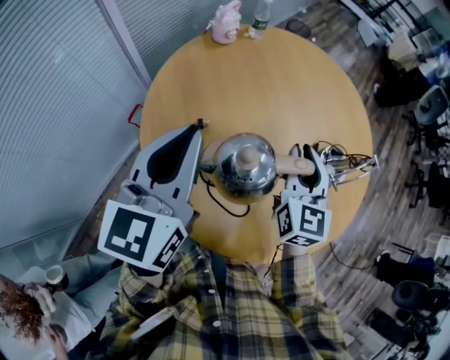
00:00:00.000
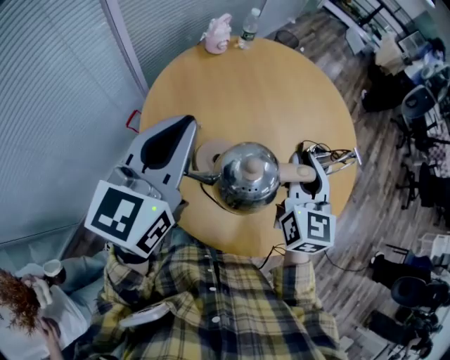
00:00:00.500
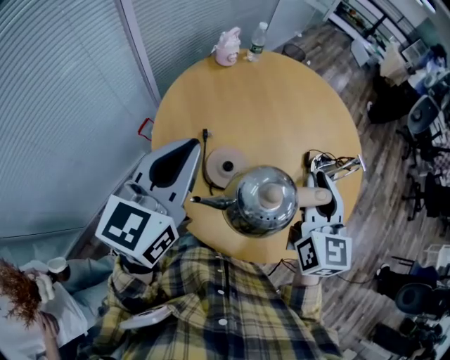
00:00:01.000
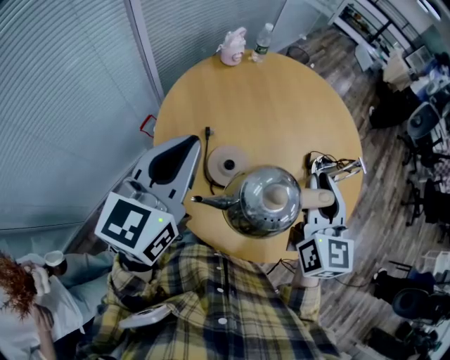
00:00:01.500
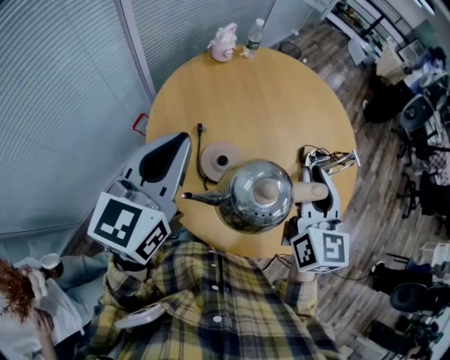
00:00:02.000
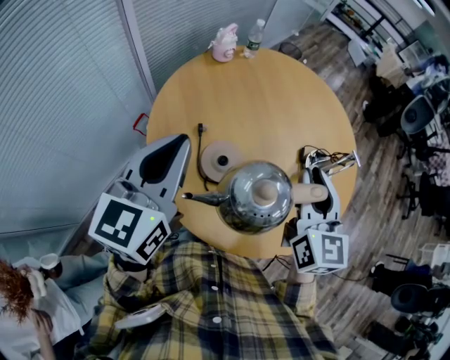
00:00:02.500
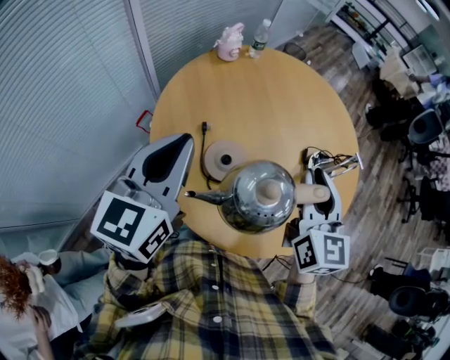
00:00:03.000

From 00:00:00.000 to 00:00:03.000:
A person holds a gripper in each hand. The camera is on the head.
From 00:00:00.000 to 00:00:01.500: The left gripper shifts roughly 5 cm backward, while the right gripper heads upward and backward, covering some 15 cm.
From 00:00:01.500 to 00:00:03.000: Neither gripper changes place.

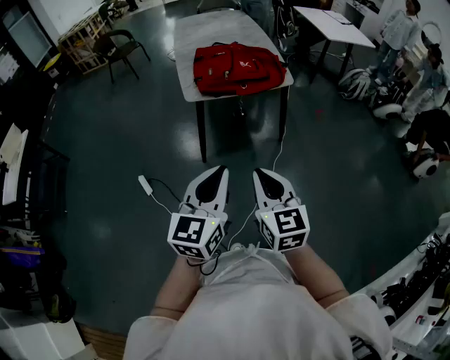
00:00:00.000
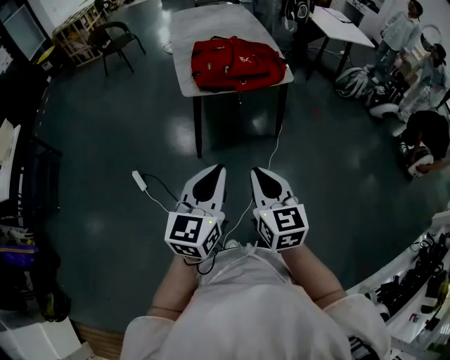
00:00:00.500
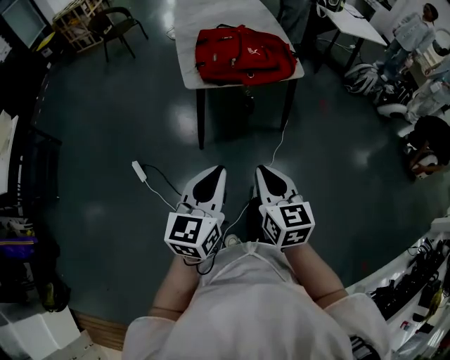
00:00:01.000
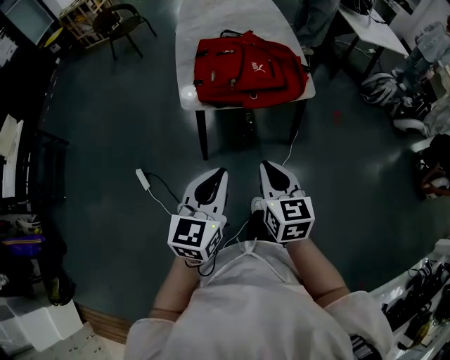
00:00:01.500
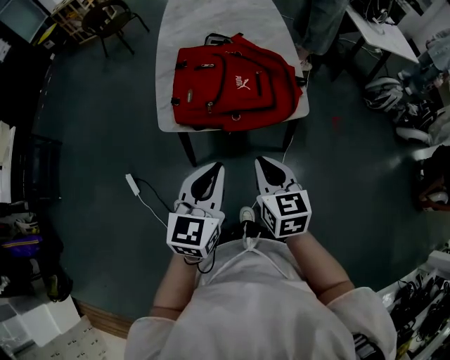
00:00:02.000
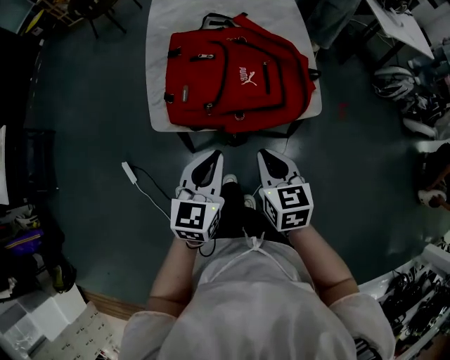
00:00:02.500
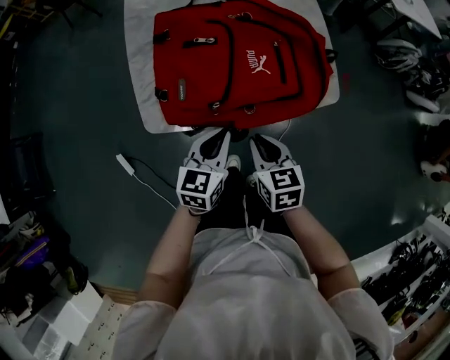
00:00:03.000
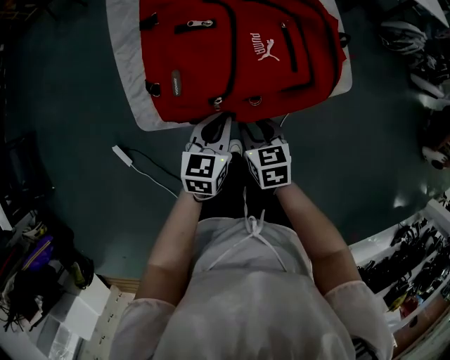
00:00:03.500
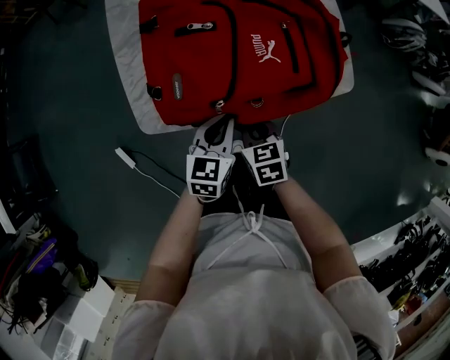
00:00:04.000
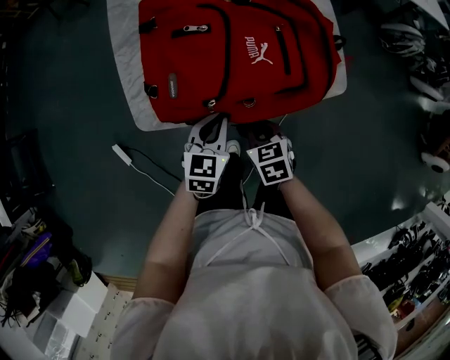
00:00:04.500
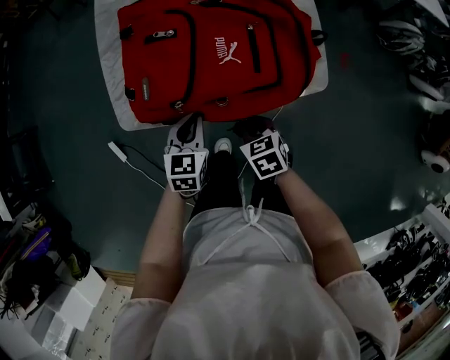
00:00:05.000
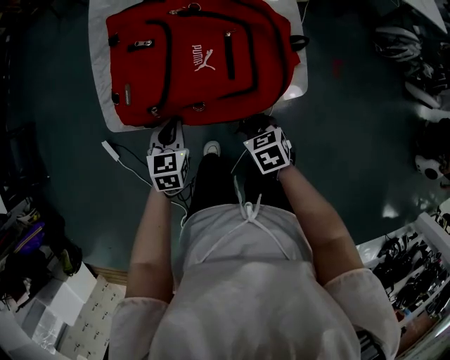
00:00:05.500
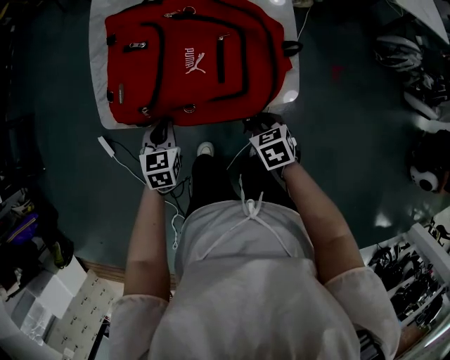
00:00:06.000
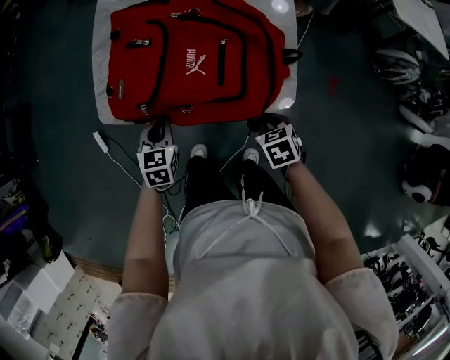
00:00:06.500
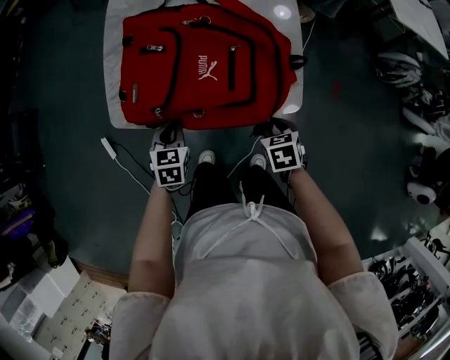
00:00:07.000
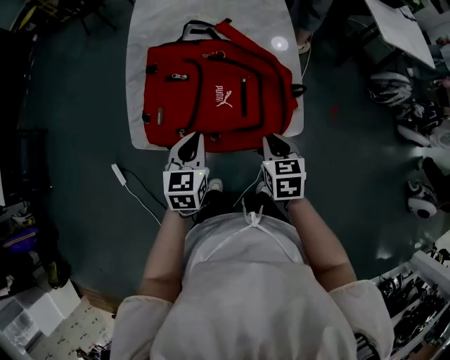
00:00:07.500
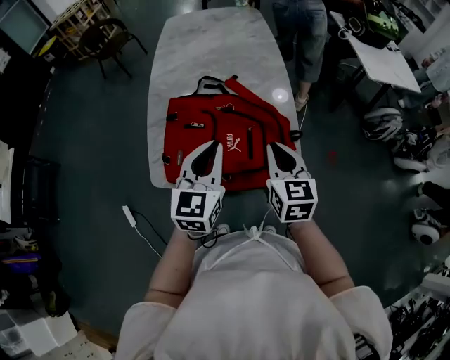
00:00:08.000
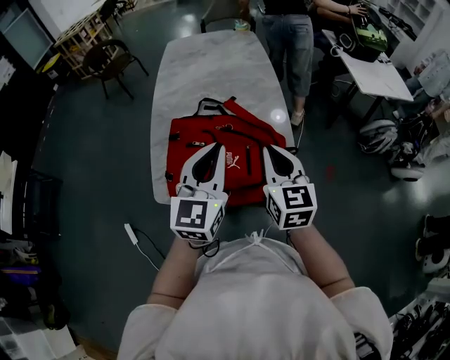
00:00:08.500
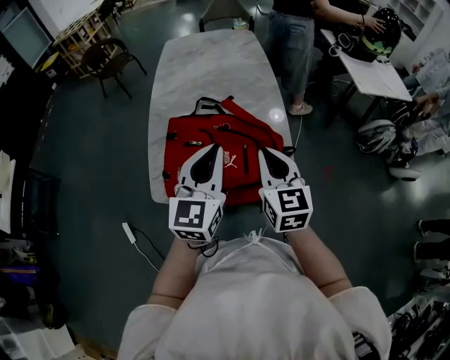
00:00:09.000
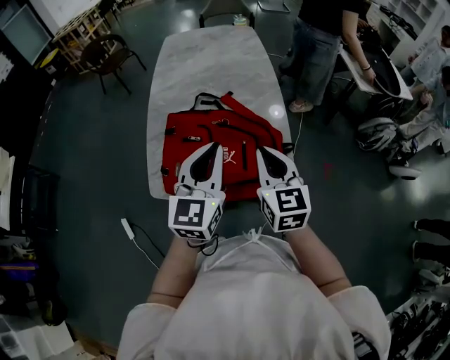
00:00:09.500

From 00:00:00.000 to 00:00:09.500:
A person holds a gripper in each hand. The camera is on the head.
From 00:00:00.000 to 00:00:02.000: Both grippers move forward, roughly 35 cm.
From 00:00:02.000 to 00:00:04.000: Both grippers travel together downward and forward, approximately 30 cm. The right gripper changes its angle by some 20 degrees, and opens, then closes once more.
From 00:00:04.000 to 00:00:05.500: The right gripper goes about 15 cm to the right, while the left gripper turns by approximately 20 degrees.
From 00:00:05.500 to 00:00:07.500: Both grippers travel together upward, roughly 15 cm. The right gripper rotates about 20 degrees.
From 00:00:07.500 to 00:00:09.500: Both grippers move upward, some 25 cm. The left gripper swivels approximately 30 degrees. The right gripper tips its fingers upward by some 30 degrees.

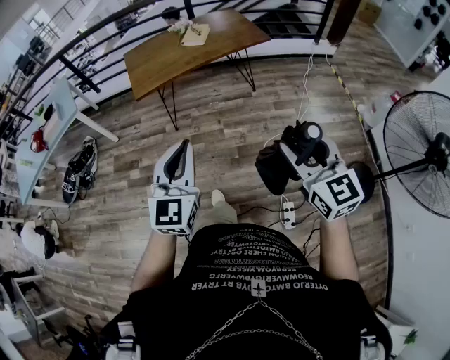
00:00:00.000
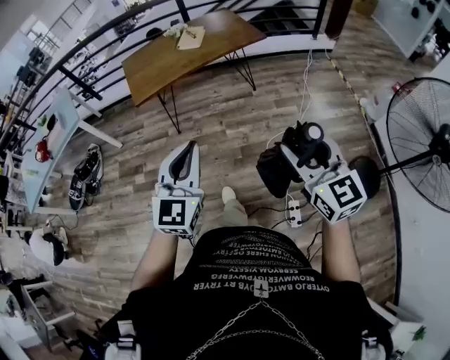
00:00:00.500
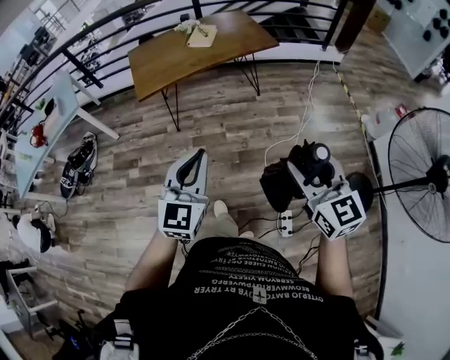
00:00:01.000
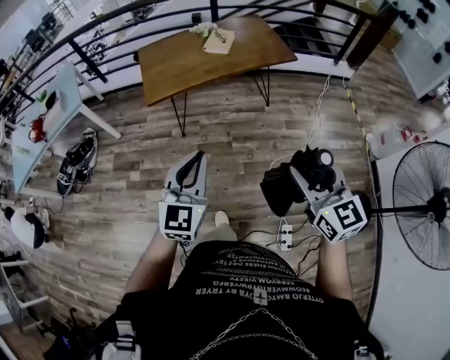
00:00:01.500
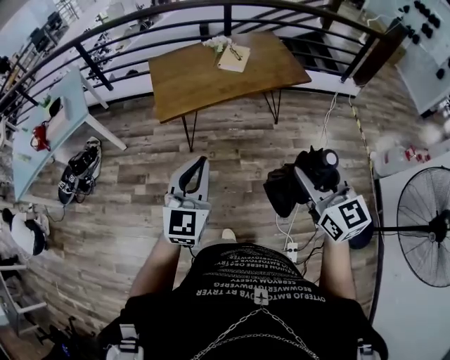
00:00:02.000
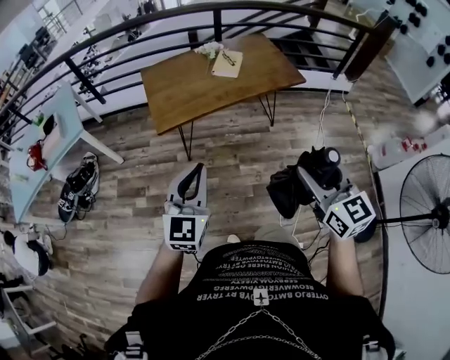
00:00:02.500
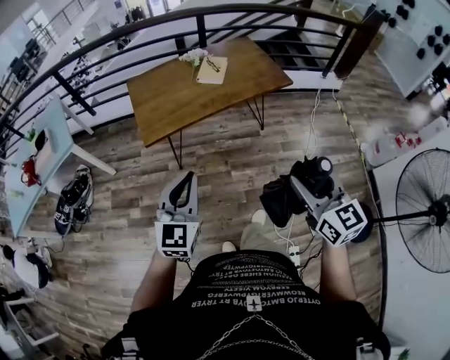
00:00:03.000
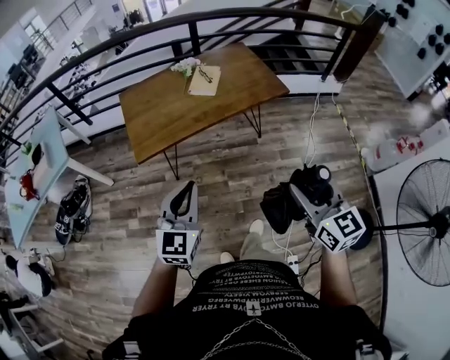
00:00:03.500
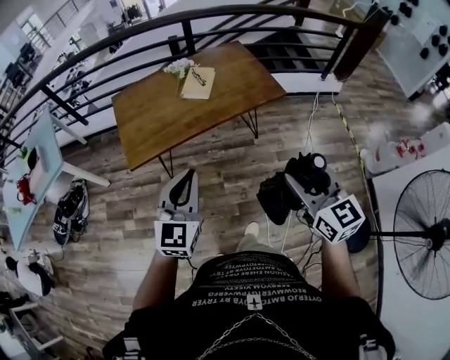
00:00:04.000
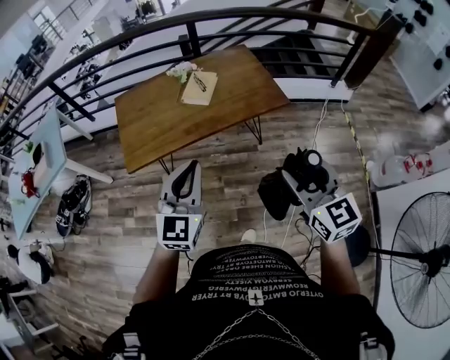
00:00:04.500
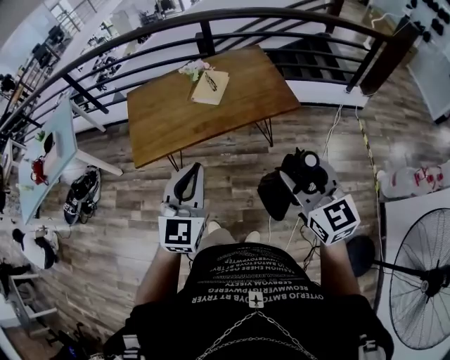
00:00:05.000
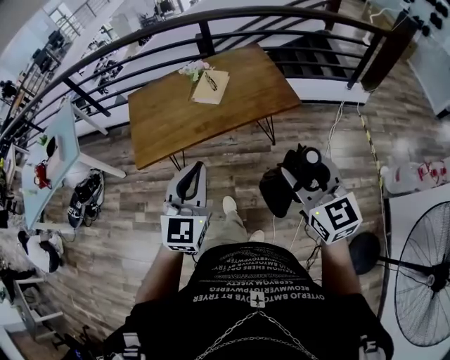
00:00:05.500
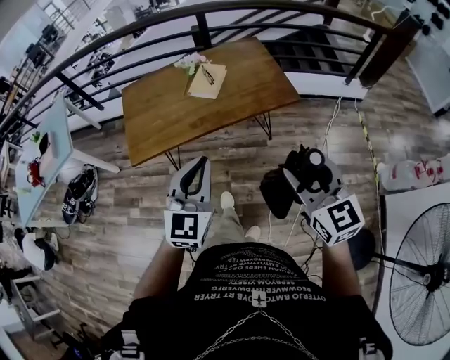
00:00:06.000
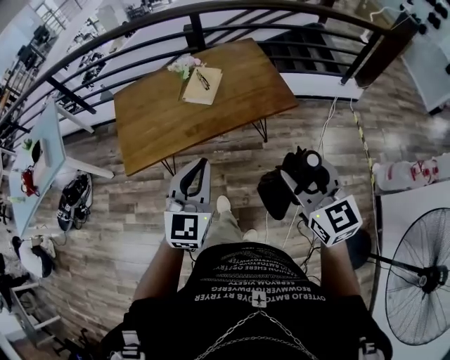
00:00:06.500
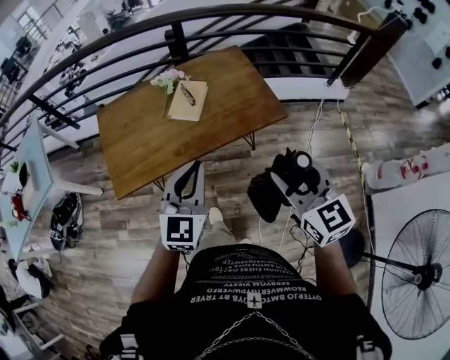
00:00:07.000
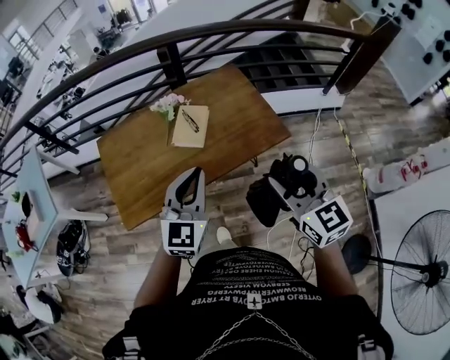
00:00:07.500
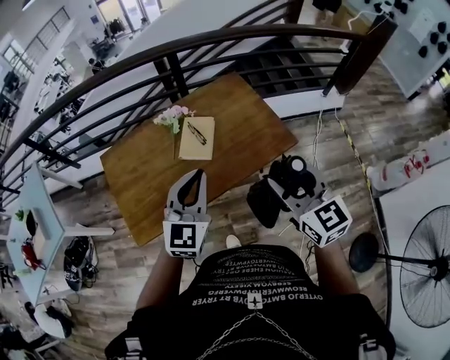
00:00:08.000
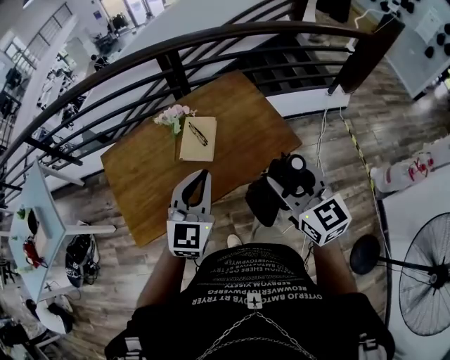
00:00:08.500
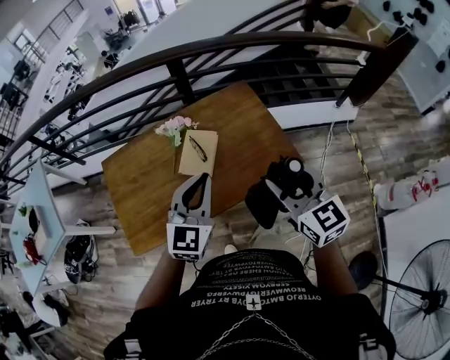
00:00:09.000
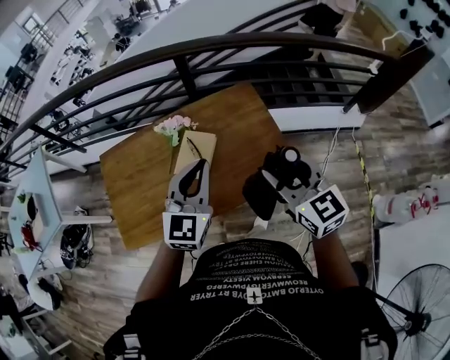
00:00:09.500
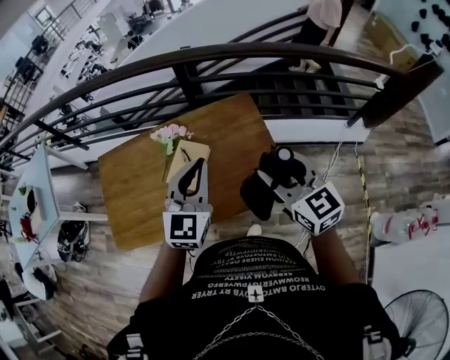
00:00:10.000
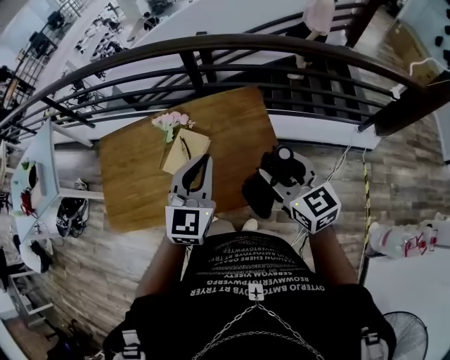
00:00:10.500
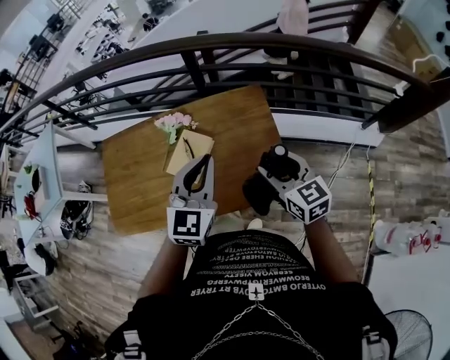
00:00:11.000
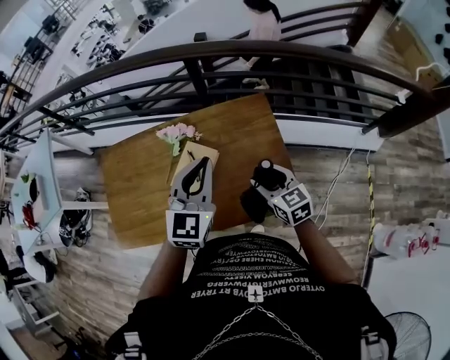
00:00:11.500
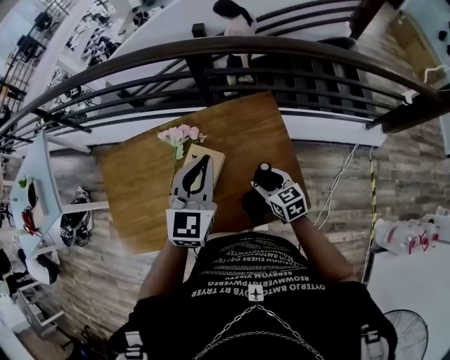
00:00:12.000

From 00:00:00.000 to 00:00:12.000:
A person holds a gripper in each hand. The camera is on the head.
From 00:00:00.000 to 00:00:02.000: The grippers both shift forward and to the left by roughly 25 cm.
From 00:00:02.000 to 00:00:04.000: Both grippers travel together forward and to the right, about 20 cm.
From 00:00:04.000 to 00:00:06.000: The left gripper moves to the right and forward, about 10 cm; the right gripper travels forward and to the right by some 10 cm.
From 00:00:06.000 to 00:00:08.000: The grippers both shift forward by about 25 cm.
From 00:00:08.000 to 00:00:10.000: The two grippers go some 25 cm forward and to the right.
From 00:00:10.000 to 00:00:12.000: The left gripper goes some 15 cm forward; the right gripper shifts roughly 30 cm downward and forward, and rotates about 30 degrees.

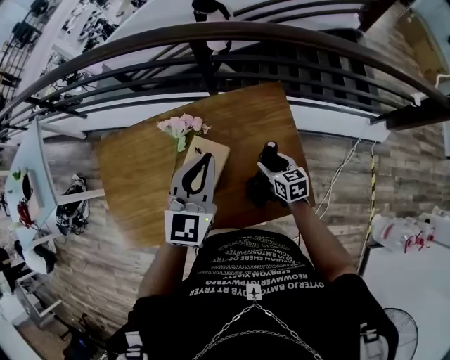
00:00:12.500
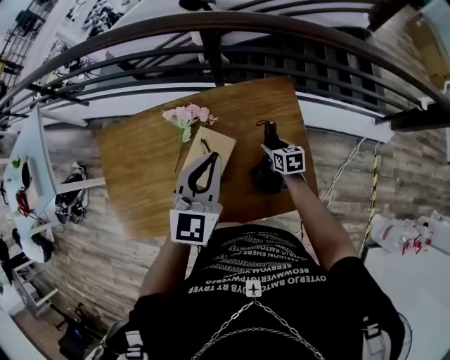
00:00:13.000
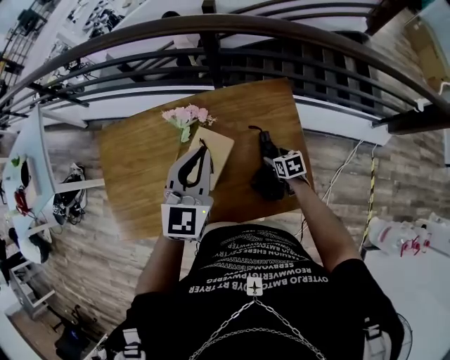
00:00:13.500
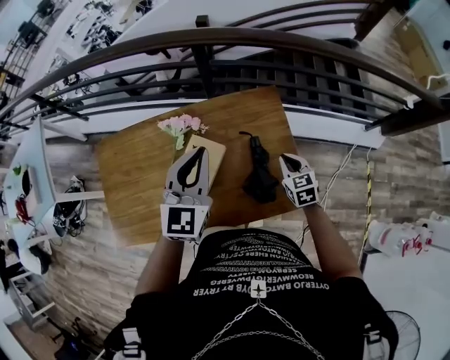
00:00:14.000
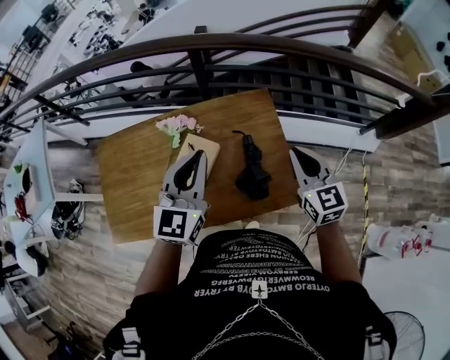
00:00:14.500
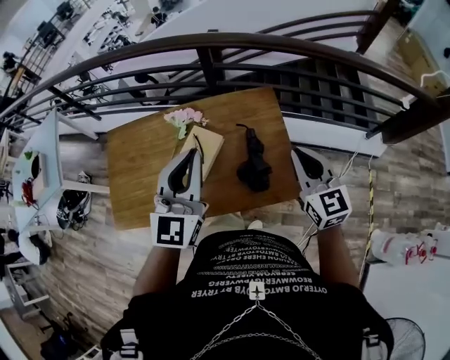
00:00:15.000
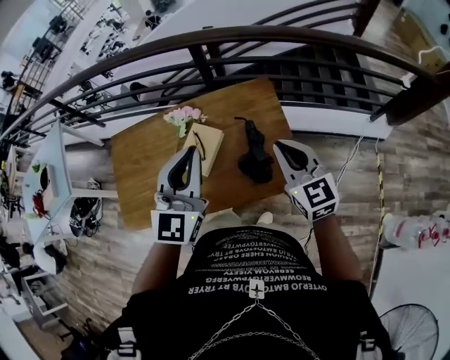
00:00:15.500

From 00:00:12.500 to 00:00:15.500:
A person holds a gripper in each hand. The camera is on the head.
From 00:00:12.500 to 00:00:14.000: The right gripper shifts about 5 cm to the right, moves approximately 10 cm downward and comes back, and closes its fingers.
From 00:00:14.000 to 00:00:15.500: The left gripper heads backward and upward, covering roughly 15 cm, while the right gripper travels upward and backward by about 25 cm, and swivels about 30 degrees.
